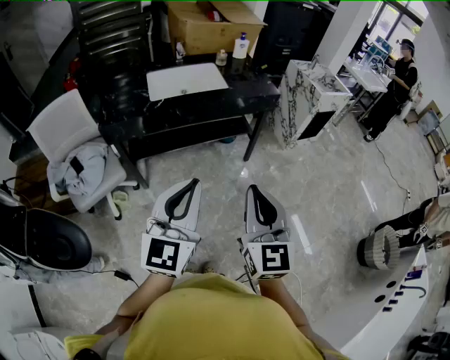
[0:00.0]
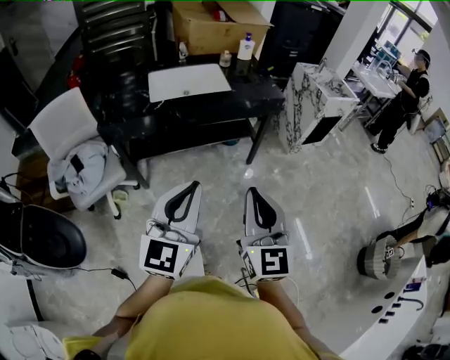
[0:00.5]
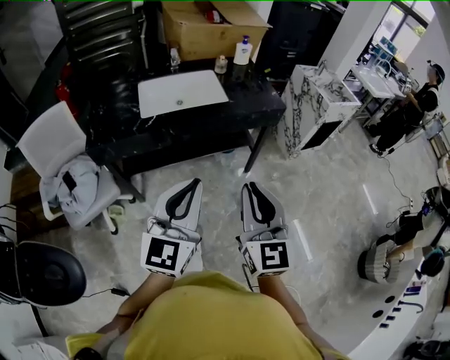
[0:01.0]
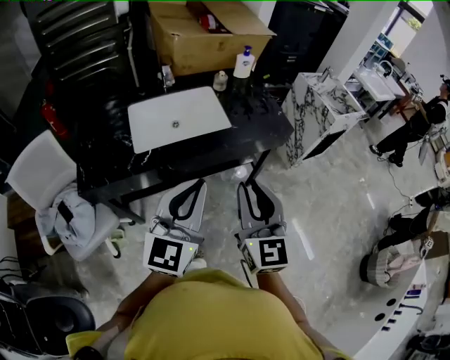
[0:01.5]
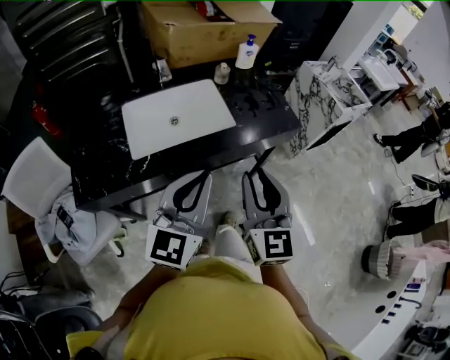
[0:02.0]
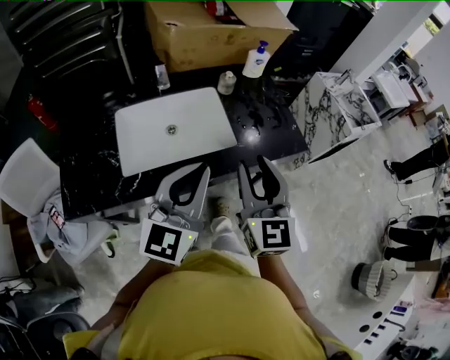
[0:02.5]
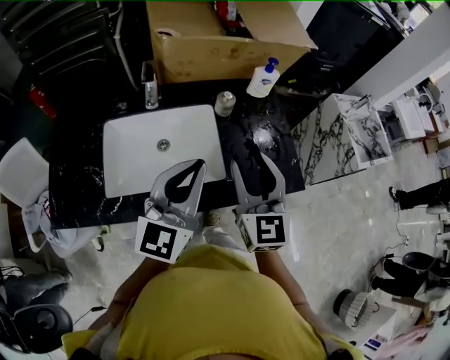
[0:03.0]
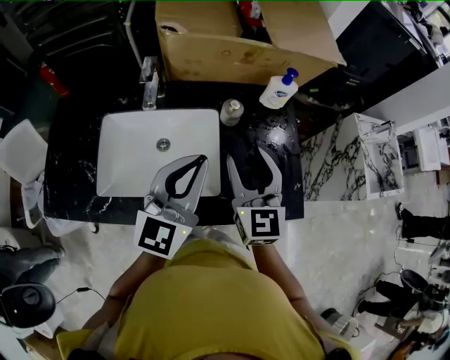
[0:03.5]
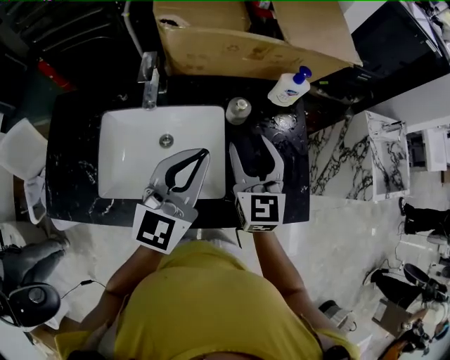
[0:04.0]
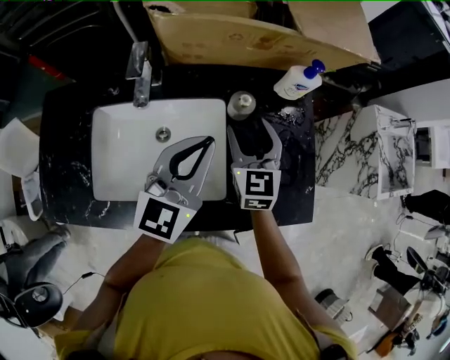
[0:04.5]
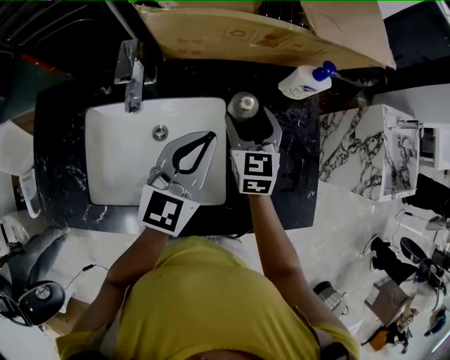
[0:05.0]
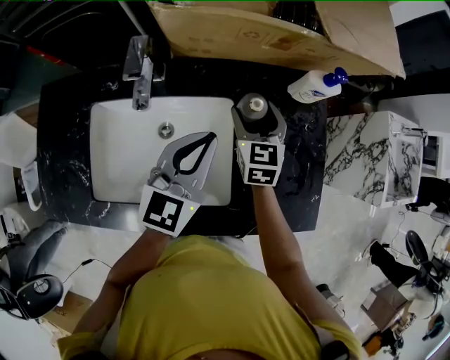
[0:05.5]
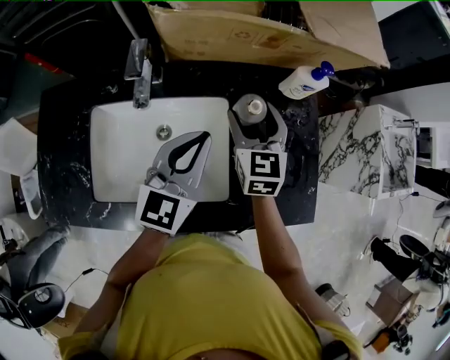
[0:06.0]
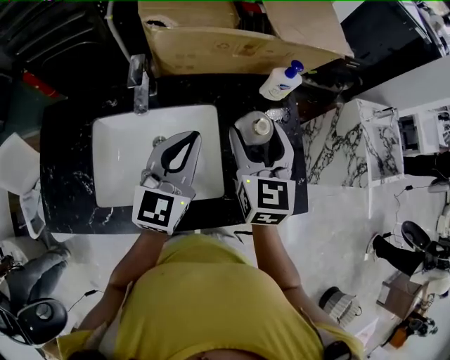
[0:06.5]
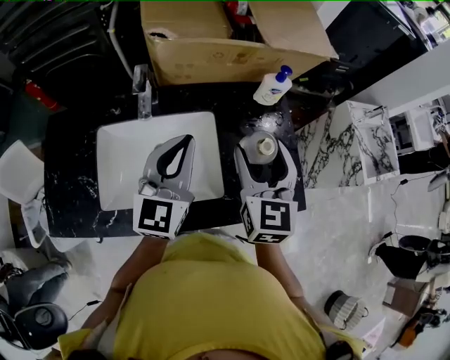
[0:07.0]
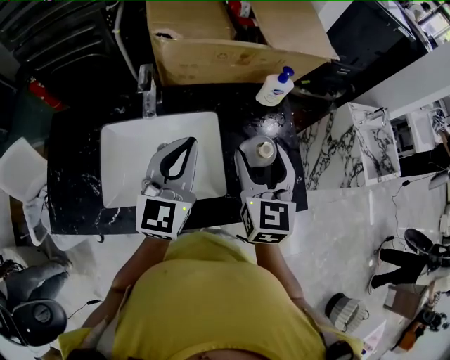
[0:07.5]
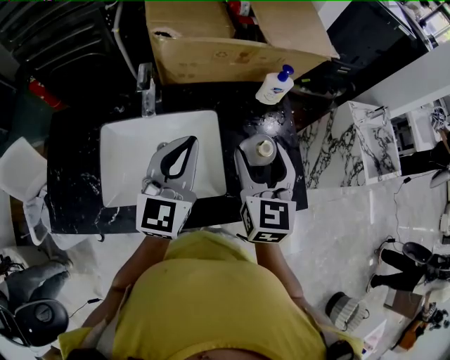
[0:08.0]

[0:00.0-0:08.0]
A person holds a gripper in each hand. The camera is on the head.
0:00.0 to 0:02.0: Both grippers are carried forward, roughly 40 cm.
0:02.0 to 0:04.0: The two grippers go some 40 cm forward. The right gripper swivels some 20 degrees, and opens up.
0:04.0 to 0:06.0: The right gripper travels forward and downward by some 10 cm; the left gripper goes approximately 10 cm downward and forward.
0:06.0 to 0:08.0: The left gripper is displaced upward and backward by roughly 10 cm, while the right gripper shifts approximately 20 cm backward and upward.

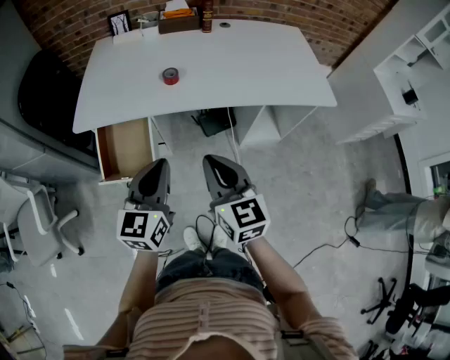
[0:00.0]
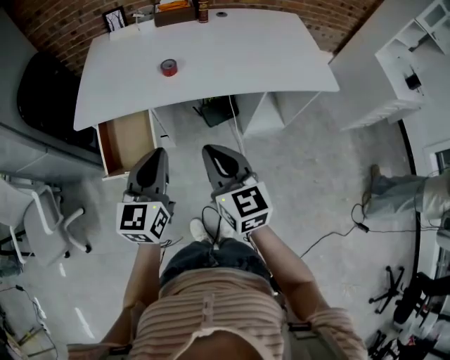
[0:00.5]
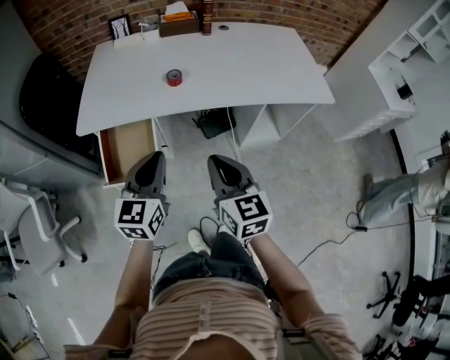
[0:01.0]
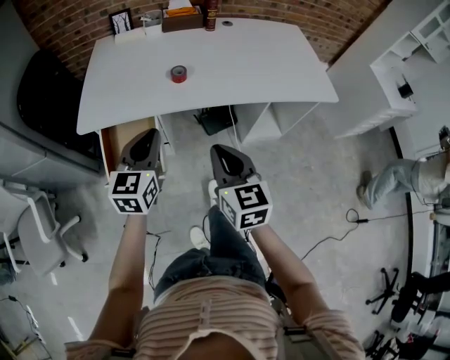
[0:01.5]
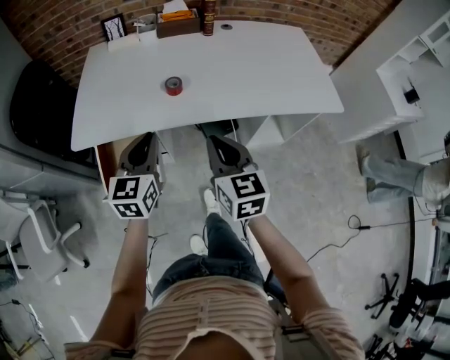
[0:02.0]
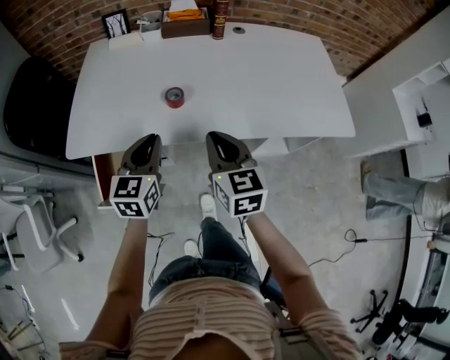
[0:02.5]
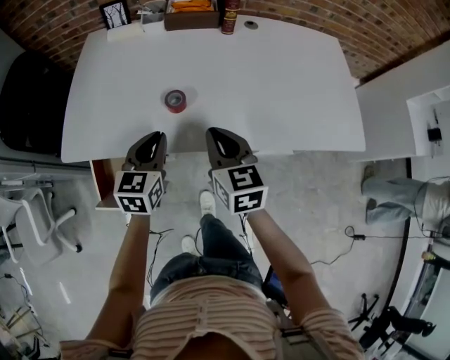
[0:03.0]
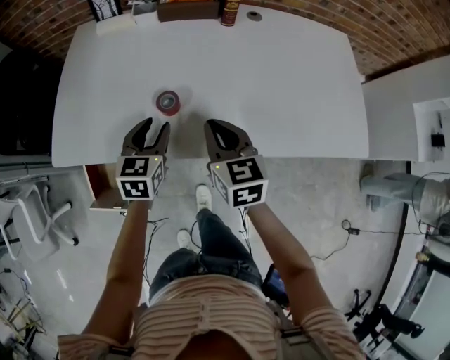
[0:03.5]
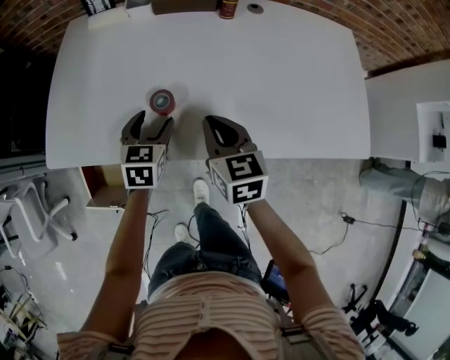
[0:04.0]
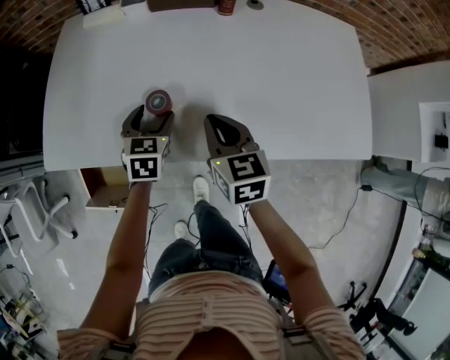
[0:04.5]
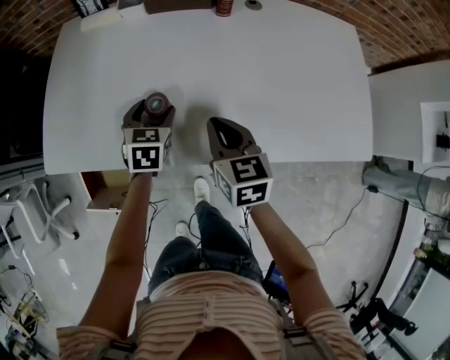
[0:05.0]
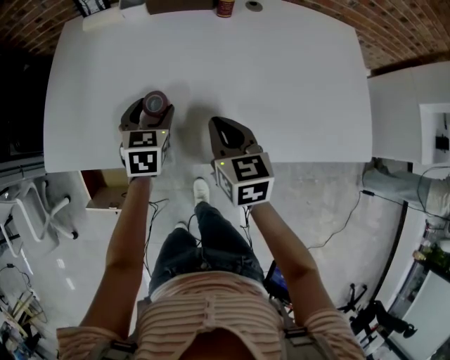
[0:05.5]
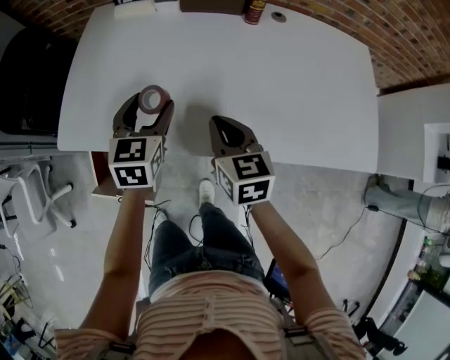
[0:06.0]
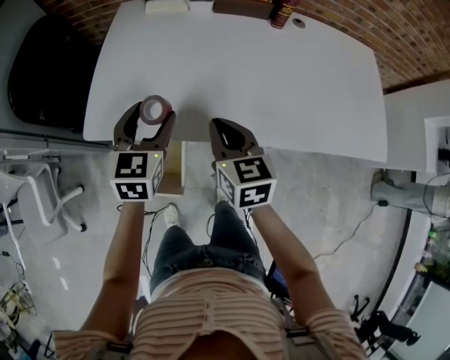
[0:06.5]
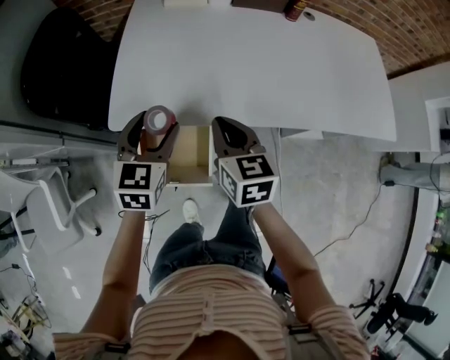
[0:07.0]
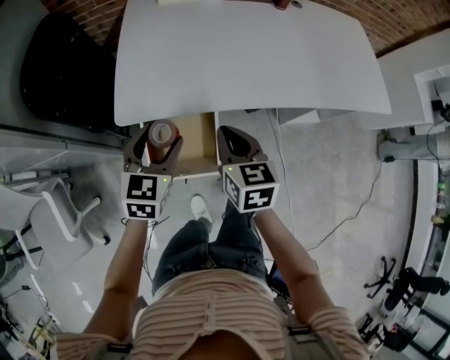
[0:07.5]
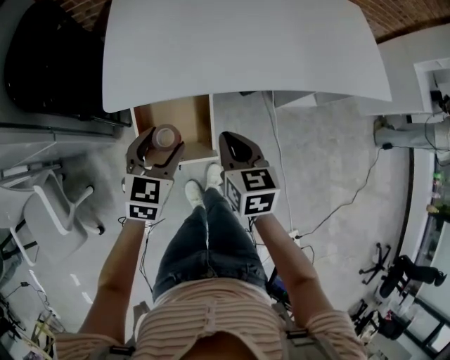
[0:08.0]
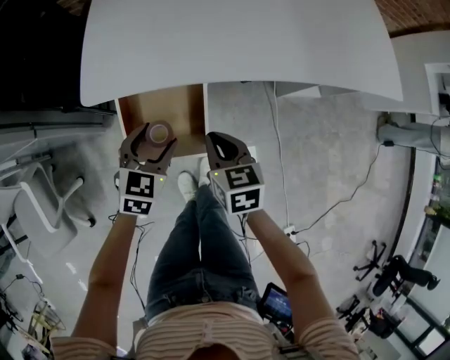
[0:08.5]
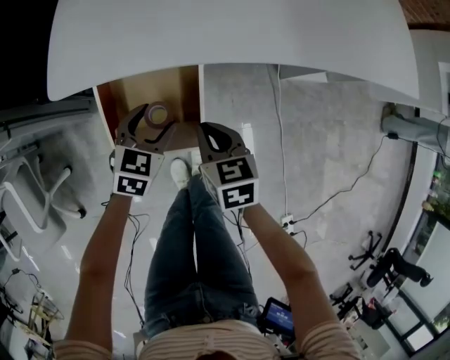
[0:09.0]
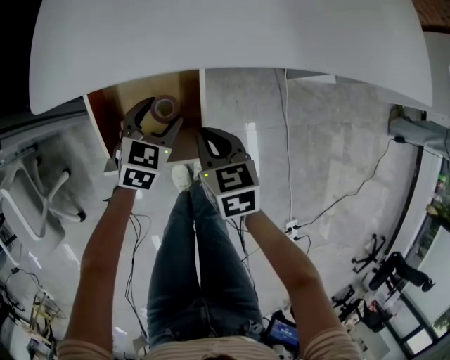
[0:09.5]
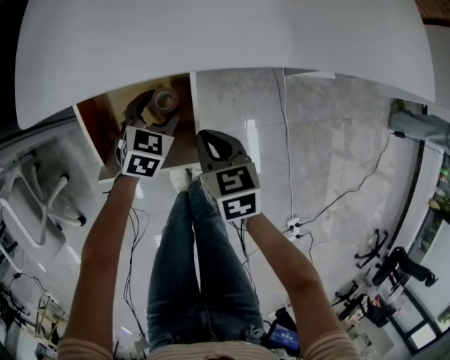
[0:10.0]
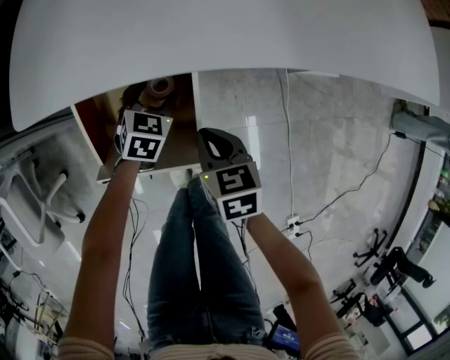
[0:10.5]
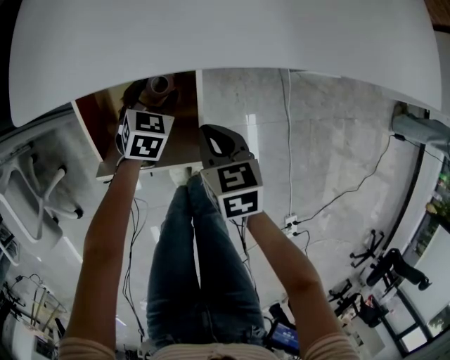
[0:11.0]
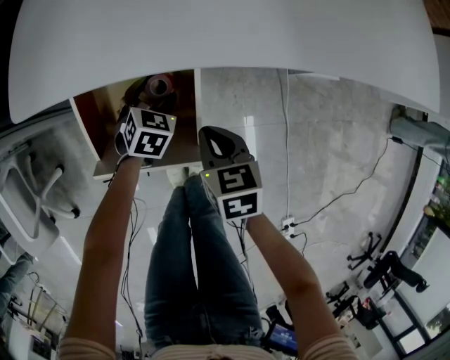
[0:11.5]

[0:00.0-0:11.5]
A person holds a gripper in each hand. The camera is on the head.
0:00.0 to 0:02.0: The grippers both shift forward by roughly 15 cm.
0:02.0 to 0:04.0: The right gripper goes about 30 cm forward. Meanwhile the left gripper goes roughly 35 cm forward and downward, rotates about 30 degrees, and opens its fingers.
0:04.0 to 0:06.0: The left gripper moves upward, some 10 cm.
0:06.0 to 0:07.5: The grippers both shift to the left and backward by about 35 cm.
0:07.5 to 0:09.5: Both grippers travel together downward, roughly 25 cm.
0:09.5 to 0:11.5: The left gripper goes about 10 cm downward and forward.

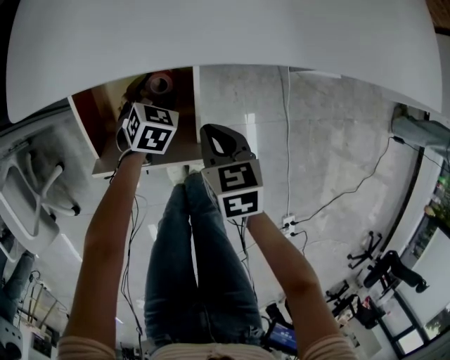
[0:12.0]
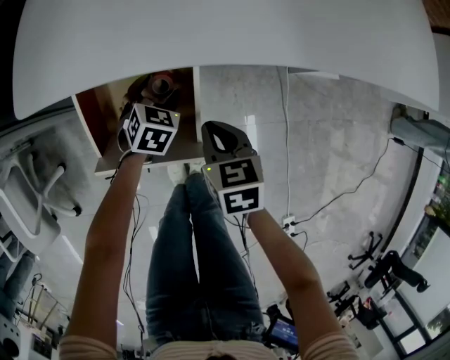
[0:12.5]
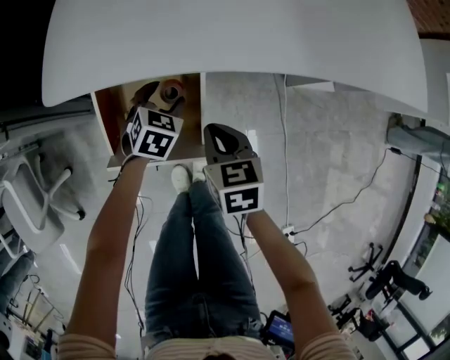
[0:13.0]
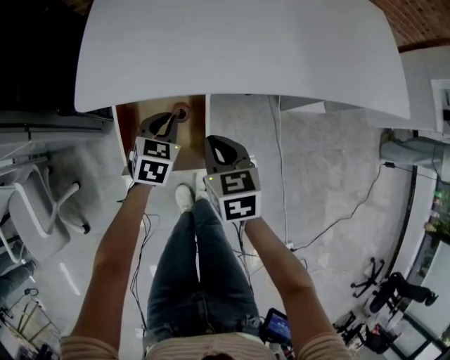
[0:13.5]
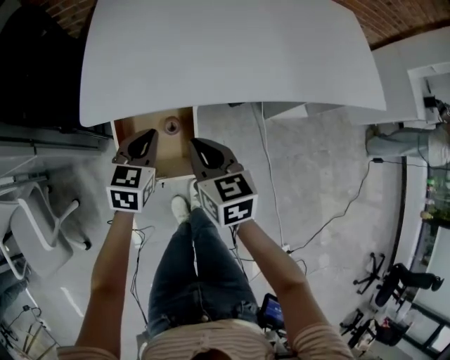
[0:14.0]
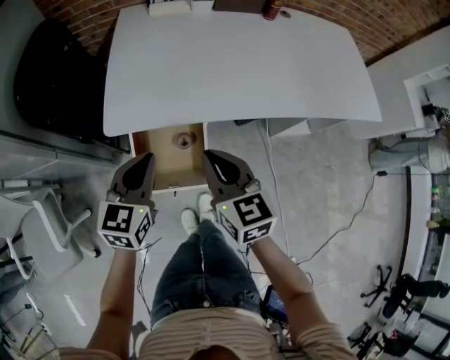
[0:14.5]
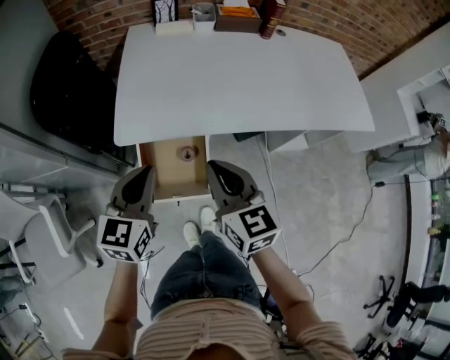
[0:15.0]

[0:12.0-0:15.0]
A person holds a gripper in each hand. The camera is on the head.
0:12.0 to 0:13.5: The grippers both shift upward and to the left by roughly 15 cm. The left gripper closes its fingers.
0:13.5 to 0:15.0: Both grippers move upward, roughly 25 cm. The left gripper rotates some 30 degrees, while the right gripper changes its angle by about 30 degrees.

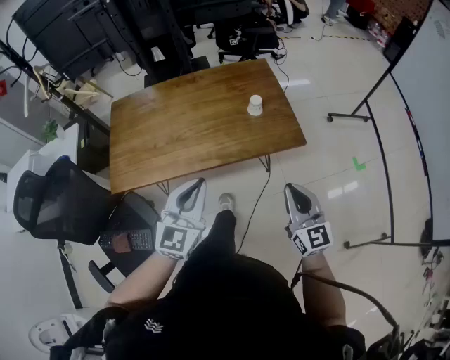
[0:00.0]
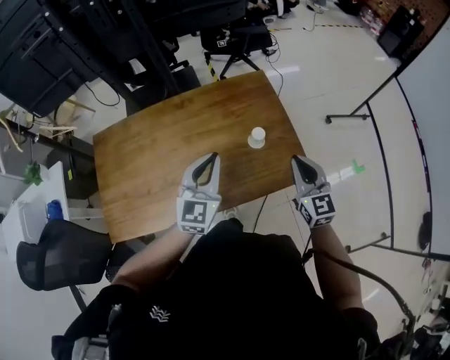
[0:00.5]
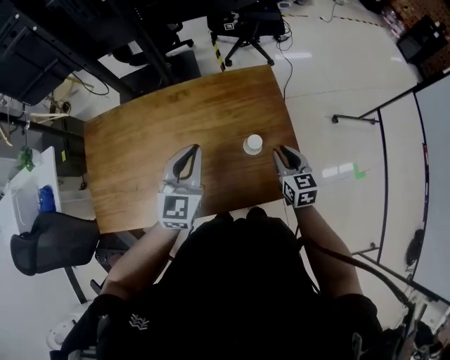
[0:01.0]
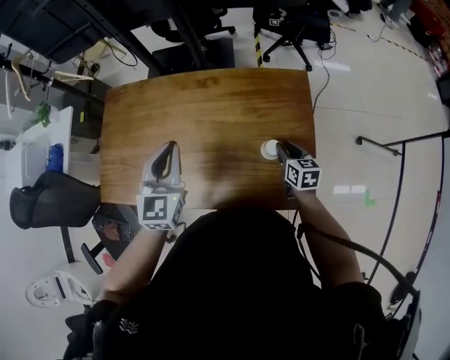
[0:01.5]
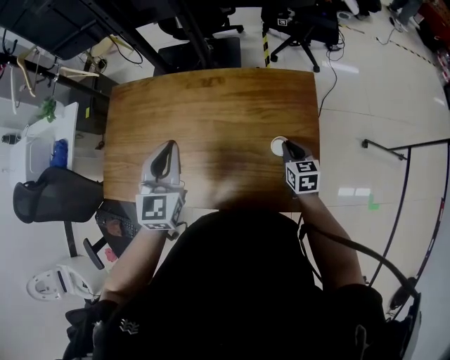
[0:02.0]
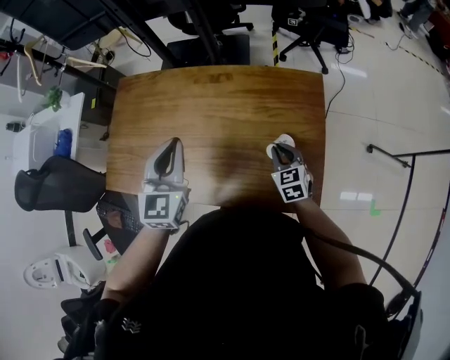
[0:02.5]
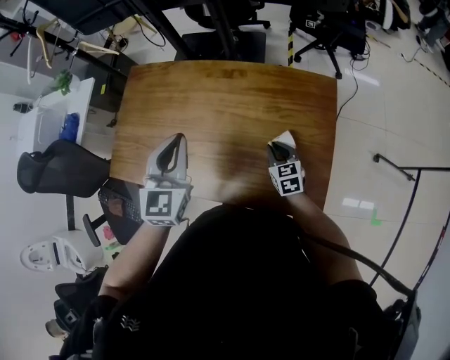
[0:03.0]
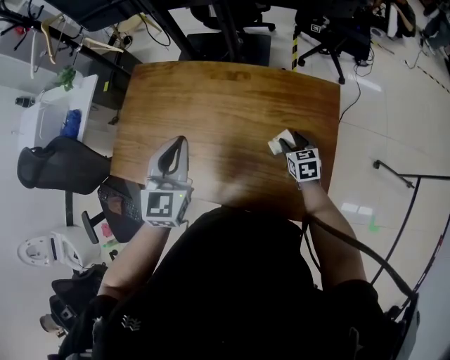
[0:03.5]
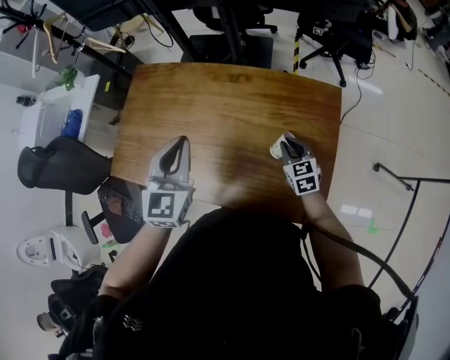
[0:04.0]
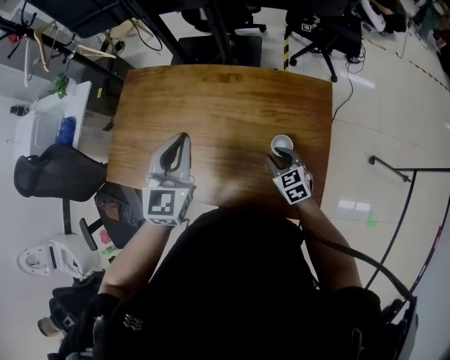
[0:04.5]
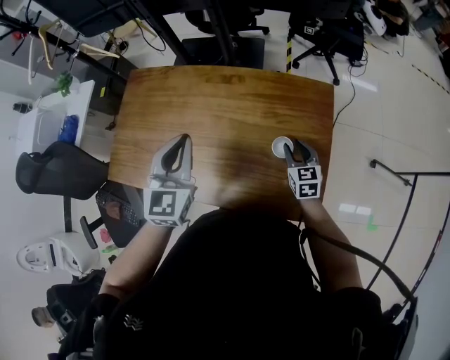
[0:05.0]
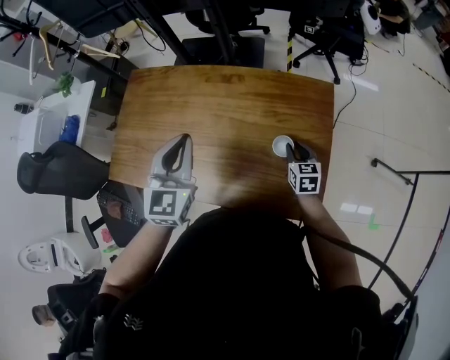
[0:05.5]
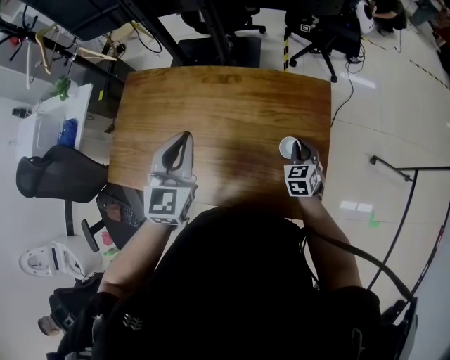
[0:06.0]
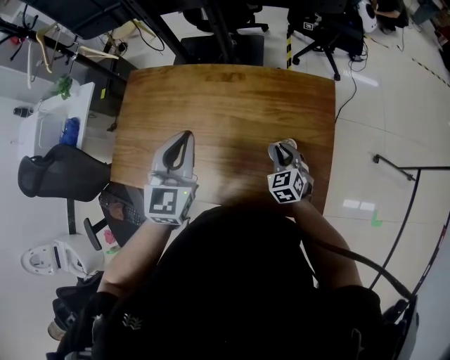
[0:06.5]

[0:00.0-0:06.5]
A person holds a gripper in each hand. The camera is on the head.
0:00.0 to 0:02.0: The left gripper changes place by approximately 30 cm, and changes its angle by roughly 30 degrees. The right gripper ends up roughly 50 cm from where it was, and points its fingers about 30 degrees further downward.
0:02.0 to 0:04.5: The right gripper swings left and right, approximately 10 cm each way, with 2 reversals, swivels some 30 degrees, and opens and closes again.
0:04.5 to 0:06.5: The right gripper travels to the right and back again, approximately 10 cm each way.
